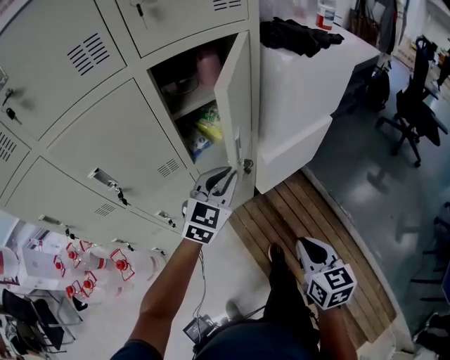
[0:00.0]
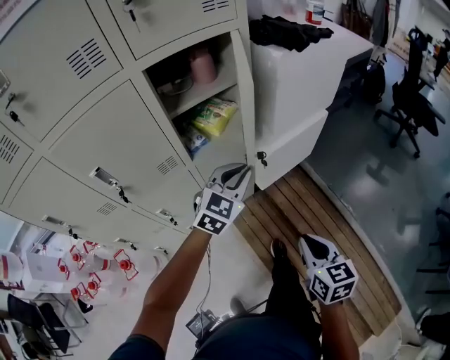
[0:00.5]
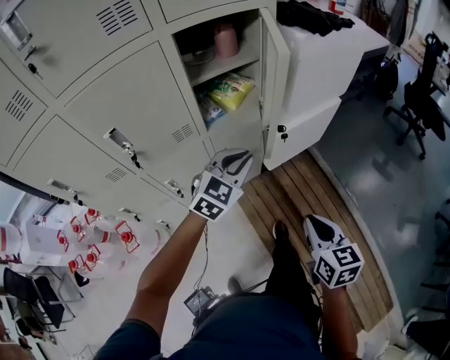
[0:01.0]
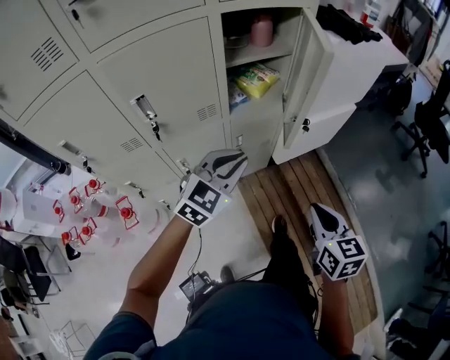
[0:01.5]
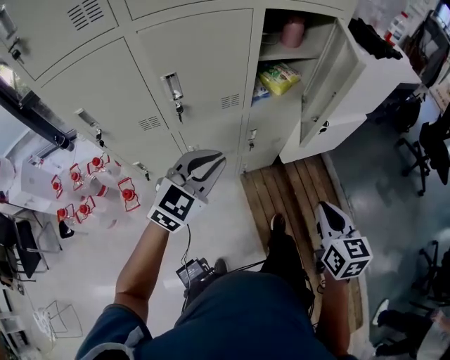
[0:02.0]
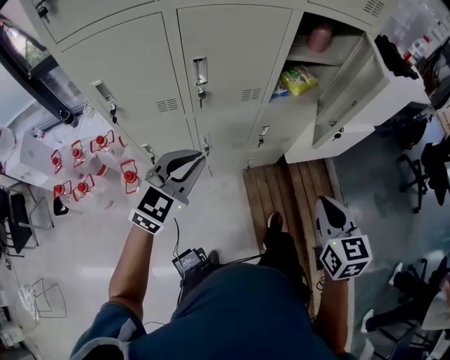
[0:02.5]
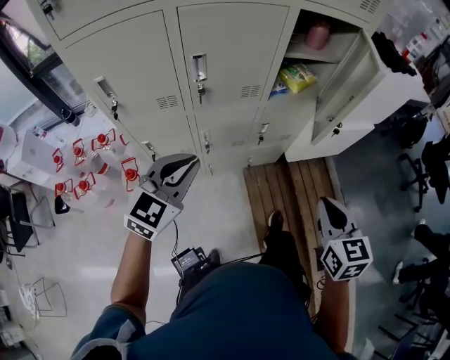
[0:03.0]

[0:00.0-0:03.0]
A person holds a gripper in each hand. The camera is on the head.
0.0 to 1.5 s: The right gripper heads to the left and backward, covering about 10 cm. The left gripper travels backward and to the left by roughly 15 cm.
1.5 to 3.0 s: The right gripper heads to the left, covering approximately 10 cm. The left gripper shifts approximately 25 cm to the left and backward.

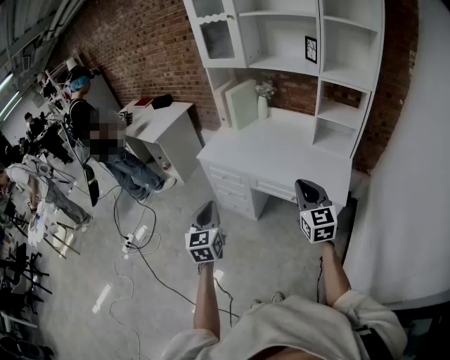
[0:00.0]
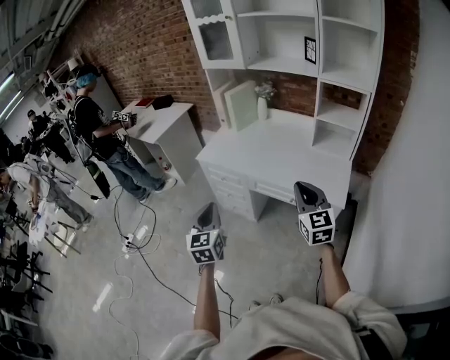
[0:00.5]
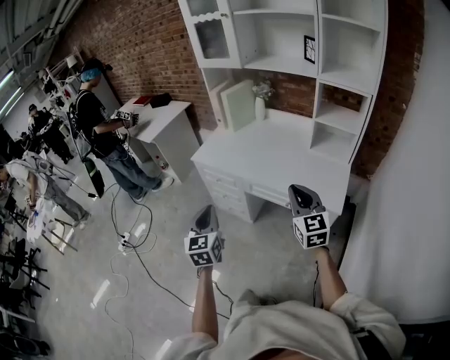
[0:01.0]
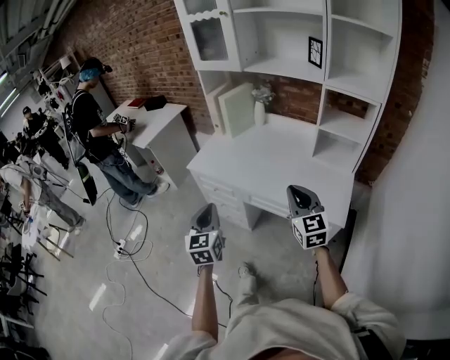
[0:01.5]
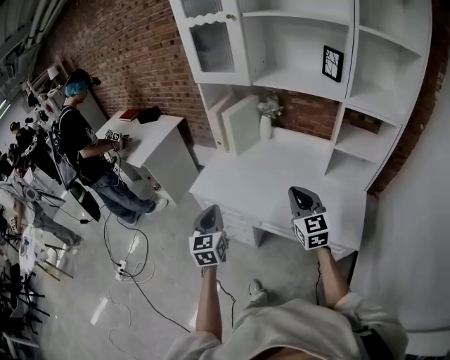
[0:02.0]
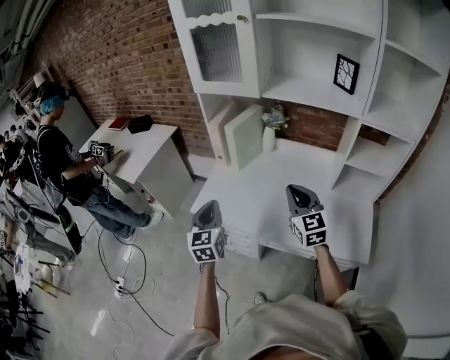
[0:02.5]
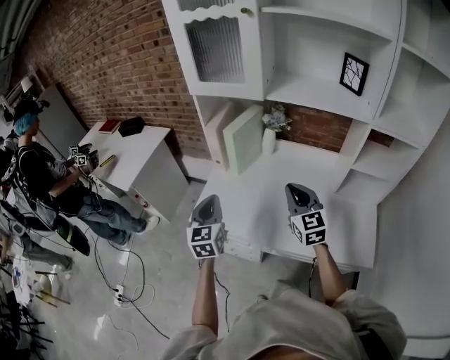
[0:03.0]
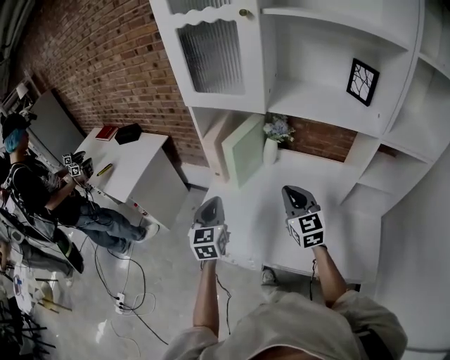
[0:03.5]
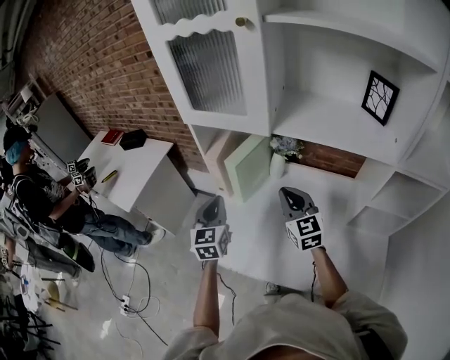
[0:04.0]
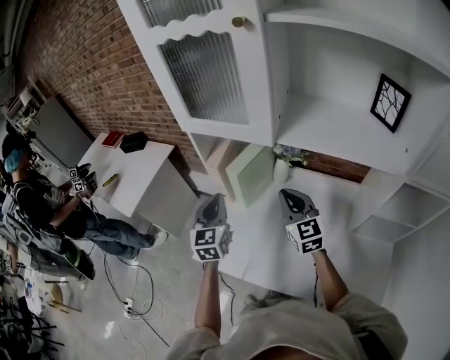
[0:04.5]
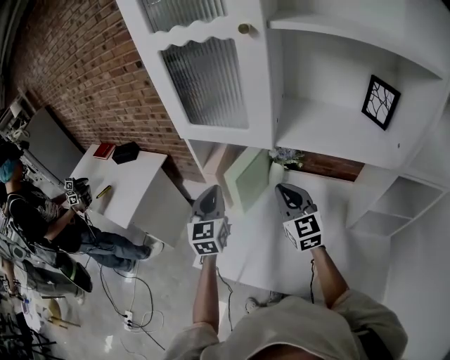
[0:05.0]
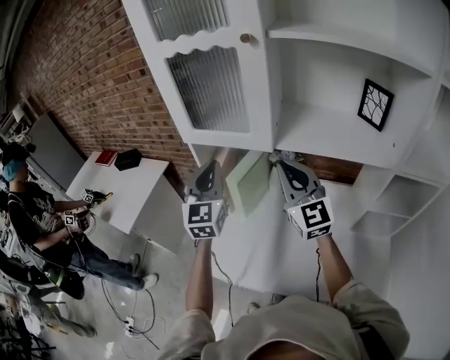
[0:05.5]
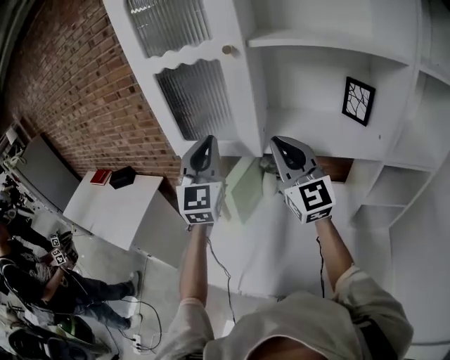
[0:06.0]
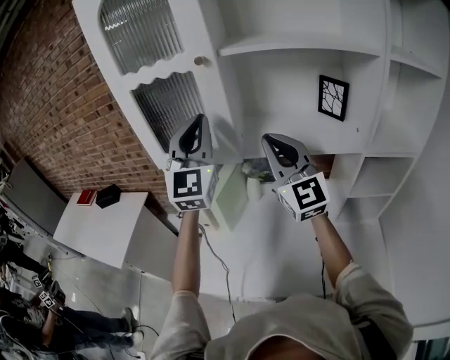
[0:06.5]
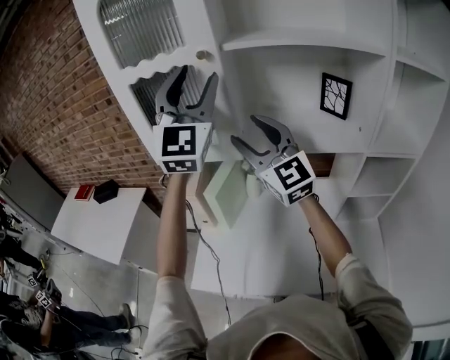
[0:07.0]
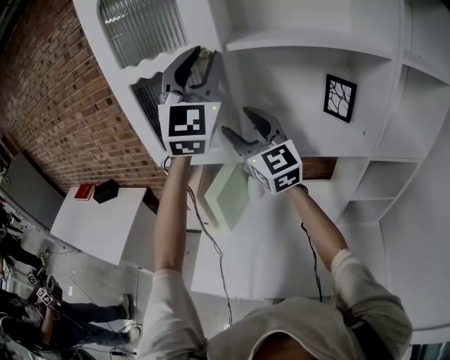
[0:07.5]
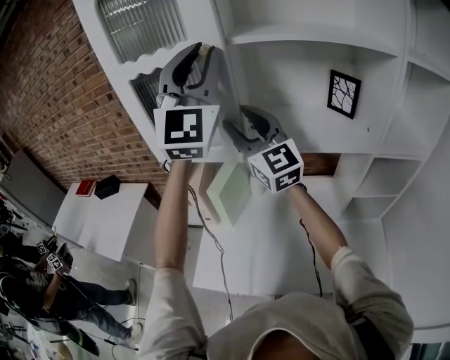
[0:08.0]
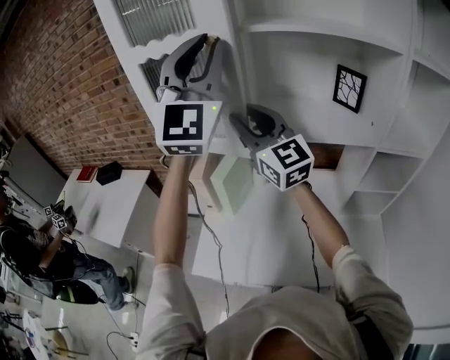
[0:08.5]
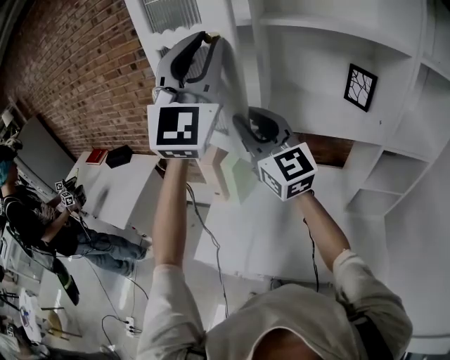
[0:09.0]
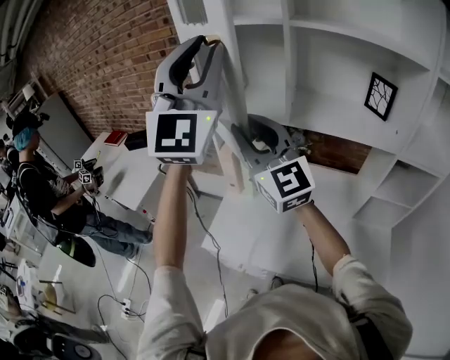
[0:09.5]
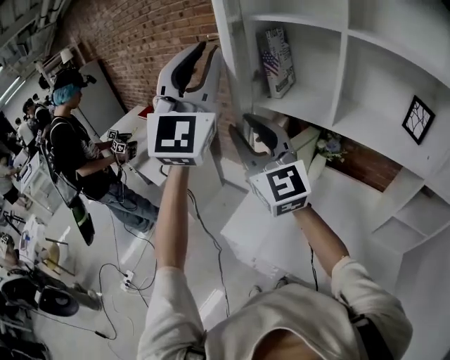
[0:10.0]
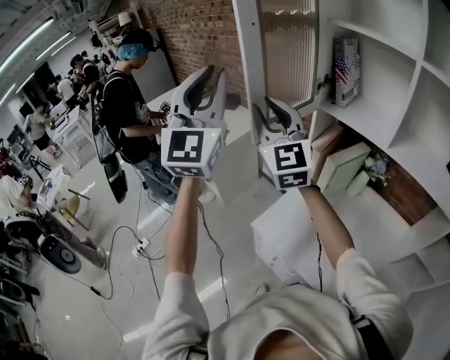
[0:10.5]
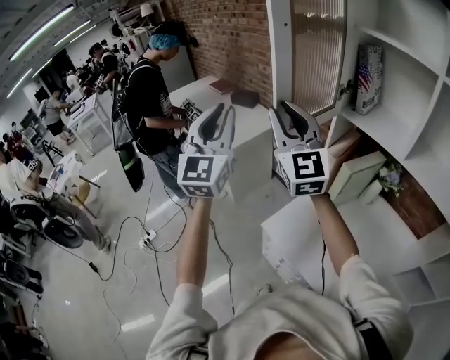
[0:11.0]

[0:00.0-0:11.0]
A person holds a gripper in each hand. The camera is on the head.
0.0 to 2.0 s: Both grippers travel together forward, some 30 cm.
2.0 to 3.5 s: Both grippers travel together forward, about 30 cm.
3.5 to 5.5 s: The two grippers go roughly 25 cm upward and forward. The right gripper changes its angle by some 20 degrees, while the left gripper swivels about 20 degrees.
5.5 to 7.5 s: The right gripper is displaced upward and forward by approximately 15 cm, and opens; the left gripper goes approximately 35 cm upward and to the right, rotates roughly 40 degrees, and opens its fingers.
7.5 to 9.0 s: The two grippers go about 10 cm backward and to the left. The right gripper closes its fingers.
9.0 to 11.0 s: The left gripper moves roughly 40 cm, and changes its angle by some 50 degrees, while the right gripper ends up roughly 30 cm from where it was, and rotates about 20 degrees.

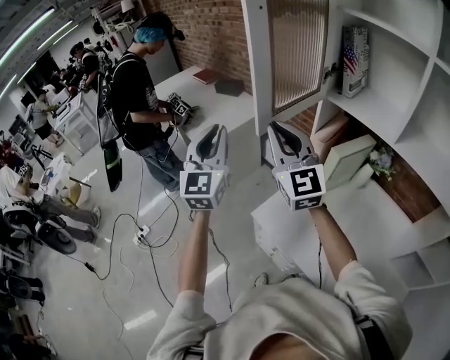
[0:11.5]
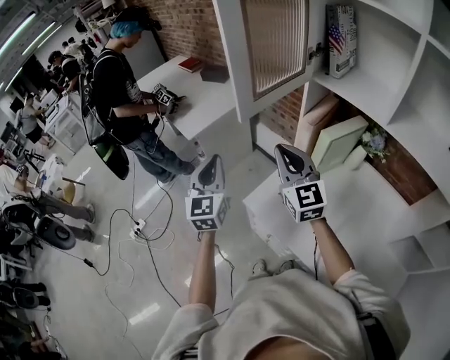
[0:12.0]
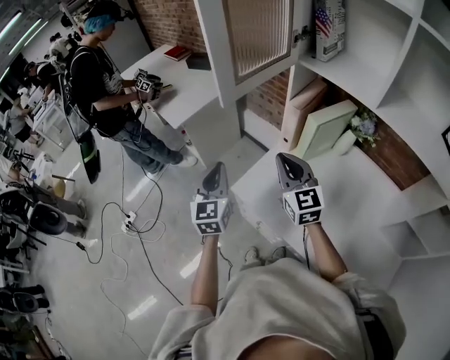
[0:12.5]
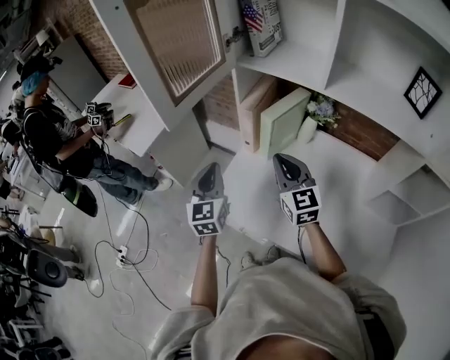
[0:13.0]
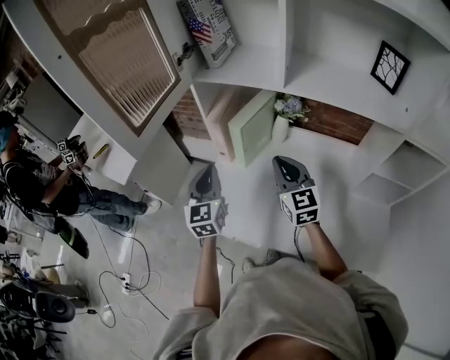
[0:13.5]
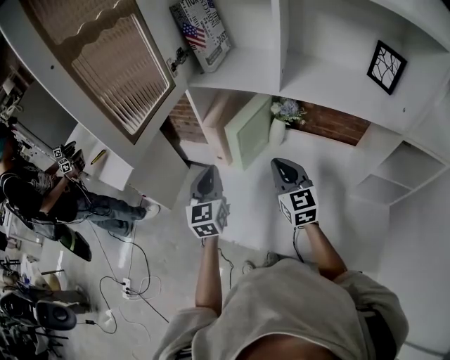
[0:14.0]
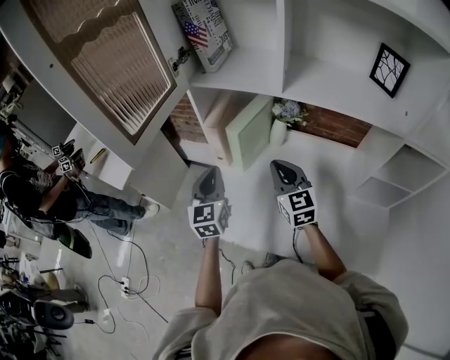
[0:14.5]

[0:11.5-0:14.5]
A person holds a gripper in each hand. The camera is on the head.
11.5 to 13.0 s: The right gripper heads to the right and downward, covering about 30 cm, and swivels about 30 degrees, while the left gripper goes approximately 25 cm downward and to the right, and changes its angle by some 20 degrees.
13.0 to 14.5 s: The grippers both shift to the right by about 10 cm.

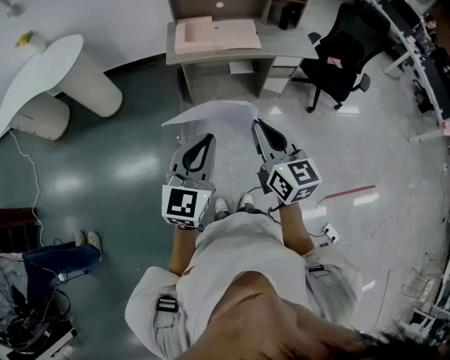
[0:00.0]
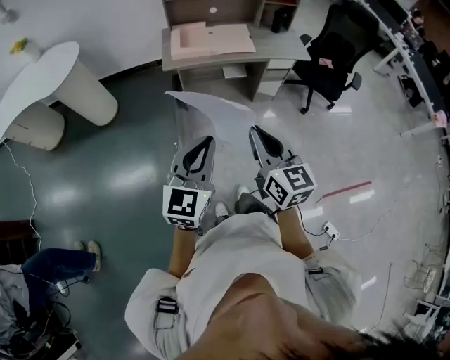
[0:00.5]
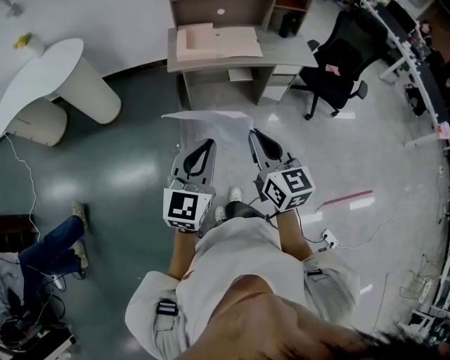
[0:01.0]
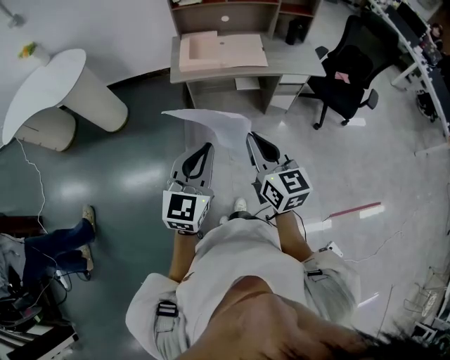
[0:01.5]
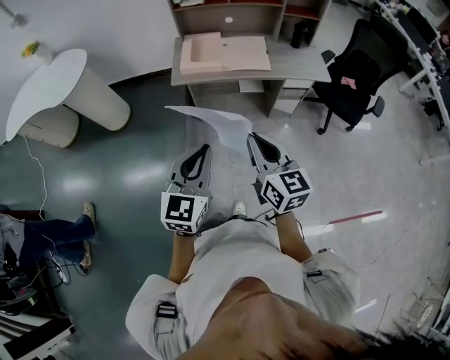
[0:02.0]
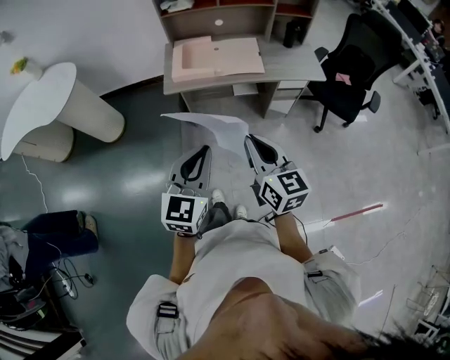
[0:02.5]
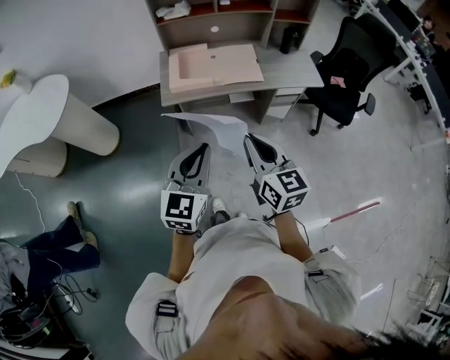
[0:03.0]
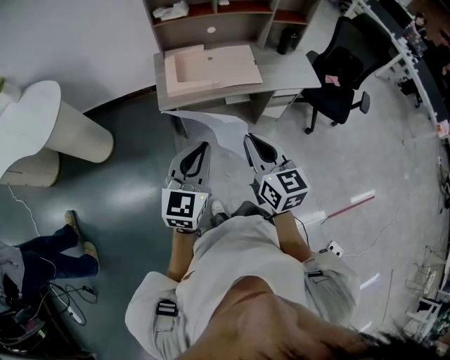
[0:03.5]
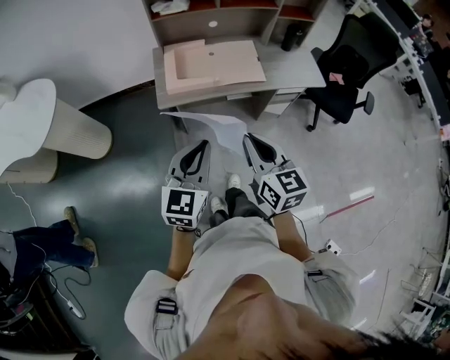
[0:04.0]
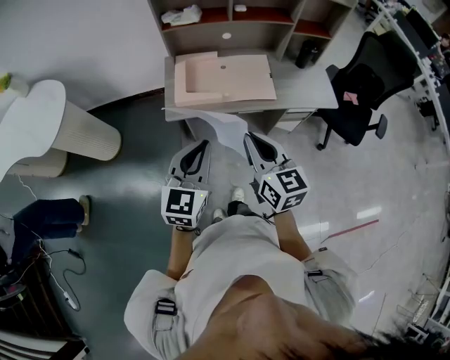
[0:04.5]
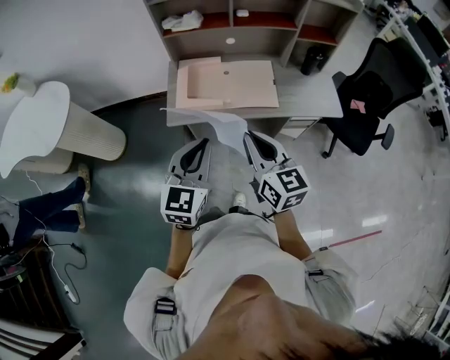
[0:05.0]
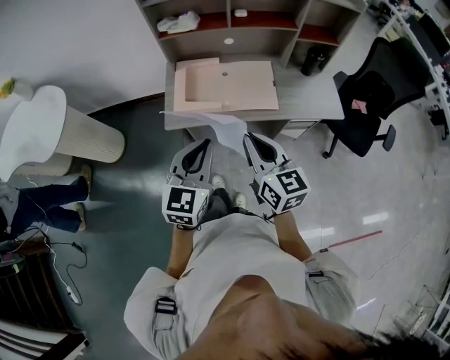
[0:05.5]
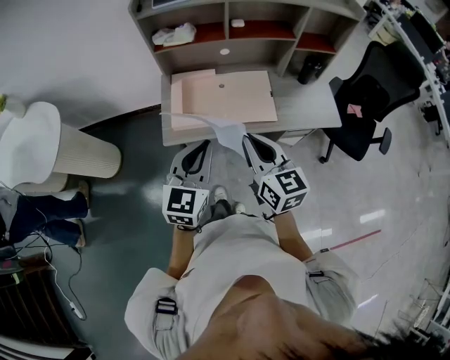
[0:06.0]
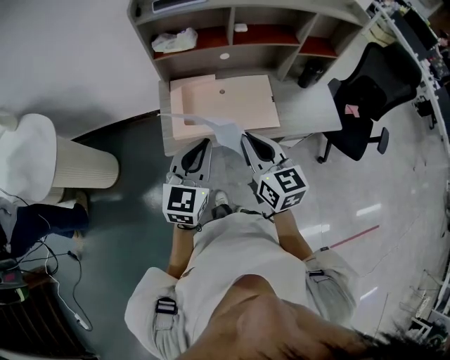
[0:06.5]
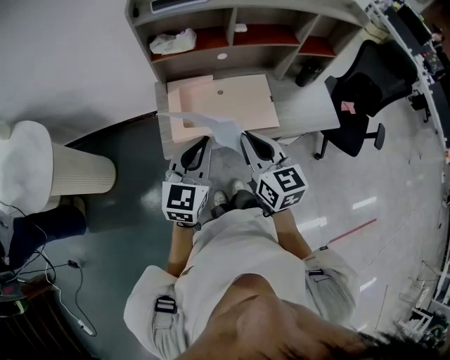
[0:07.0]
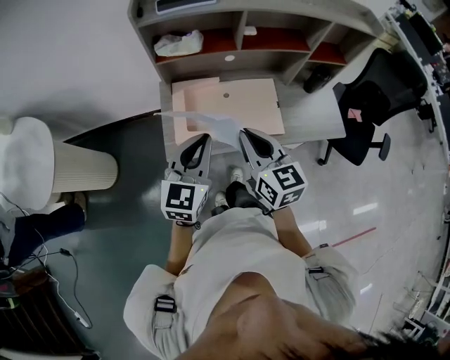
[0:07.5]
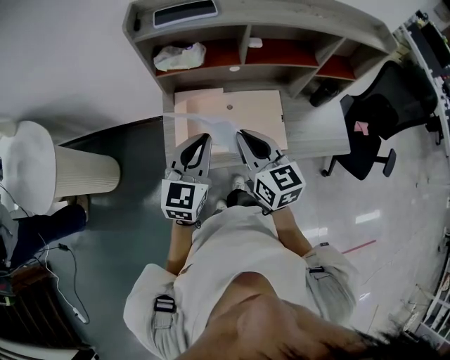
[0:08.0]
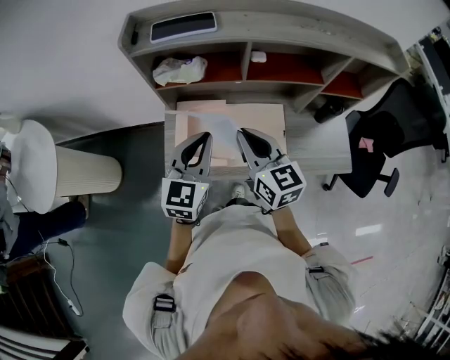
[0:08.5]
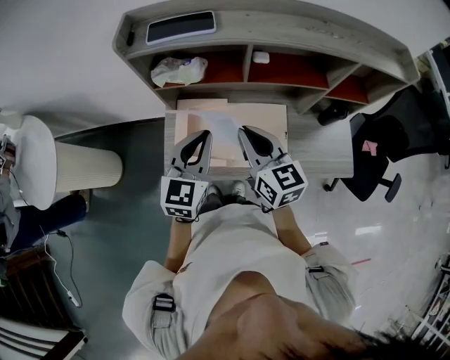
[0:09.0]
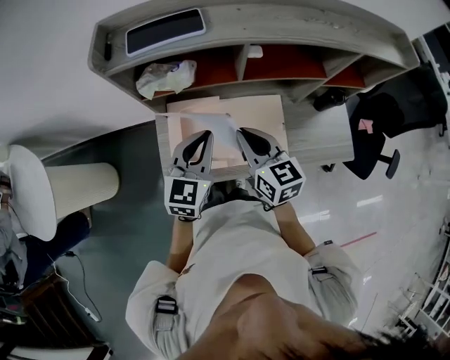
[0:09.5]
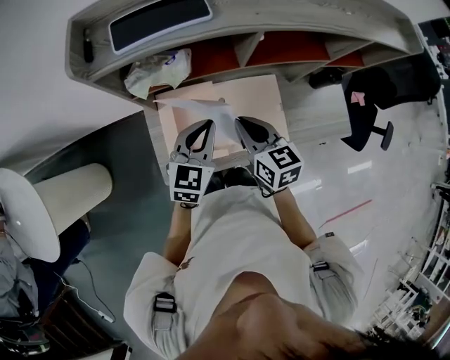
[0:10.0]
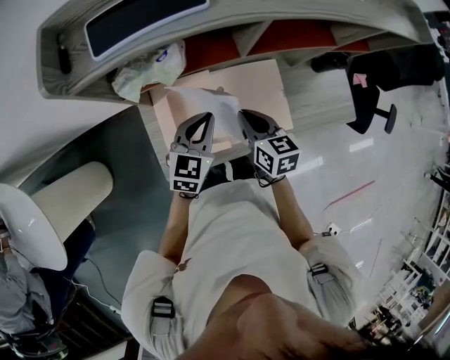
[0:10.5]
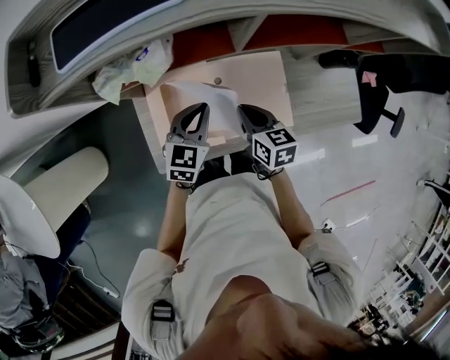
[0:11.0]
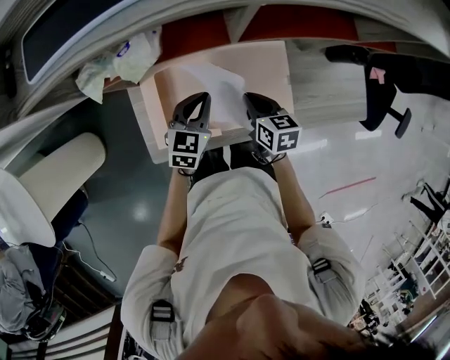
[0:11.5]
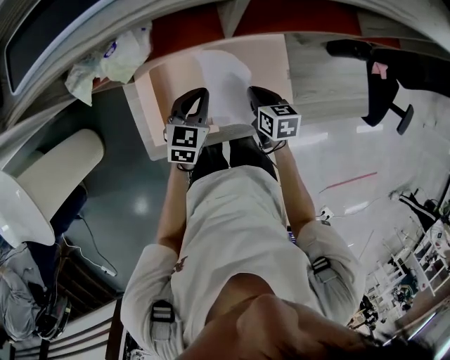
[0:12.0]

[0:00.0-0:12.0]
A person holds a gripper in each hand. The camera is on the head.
0.0 to 2.0 s: The grippers both shift forward by about 10 cm.
2.0 to 4.0 s: The right gripper is displaced forward and to the left by some 20 cm. Meanwhile the left gripper moves forward, roughly 20 cm.
4.0 to 6.0 s: The two grippers go about 20 cm forward.
6.0 to 8.0 s: Both grippers move forward, approximately 20 cm.
8.0 to 10.0 s: Both grippers travel together forward and downward, about 20 cm.
10.0 to 12.0 s: The left gripper travels downward by about 20 cm. Meanwhile the right gripper shifts some 25 cm downward and to the right, and rotates roughly 20 degrees.
